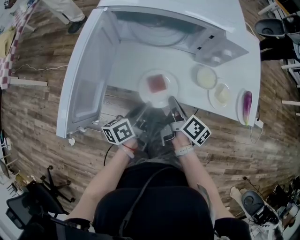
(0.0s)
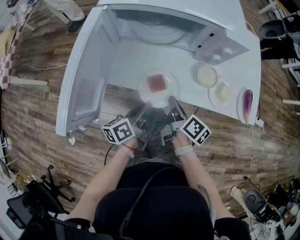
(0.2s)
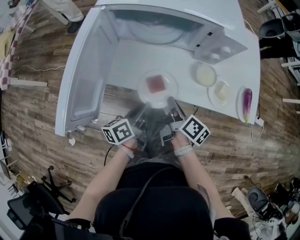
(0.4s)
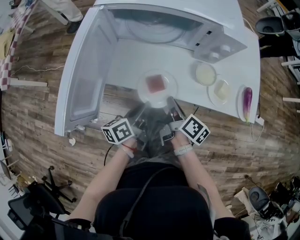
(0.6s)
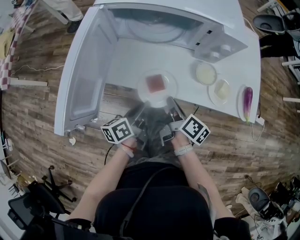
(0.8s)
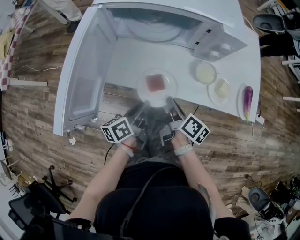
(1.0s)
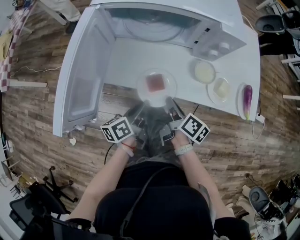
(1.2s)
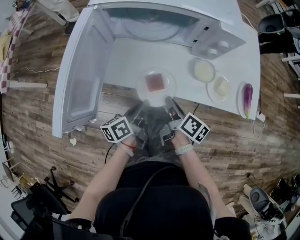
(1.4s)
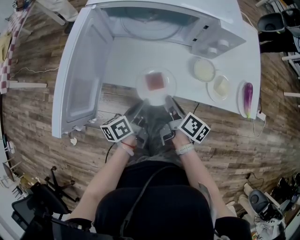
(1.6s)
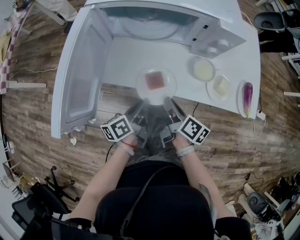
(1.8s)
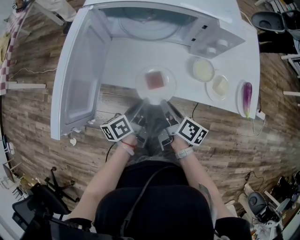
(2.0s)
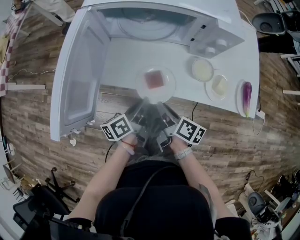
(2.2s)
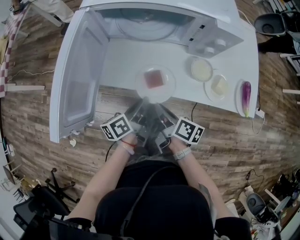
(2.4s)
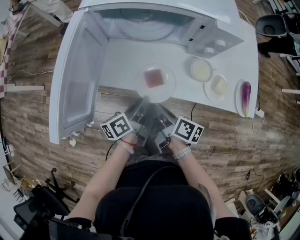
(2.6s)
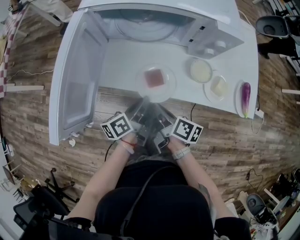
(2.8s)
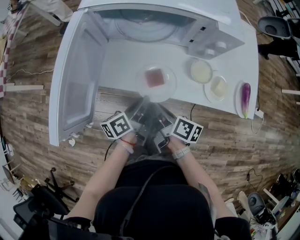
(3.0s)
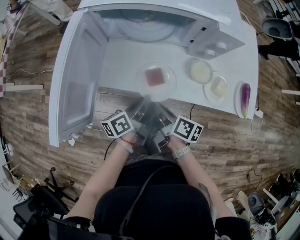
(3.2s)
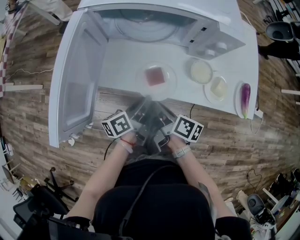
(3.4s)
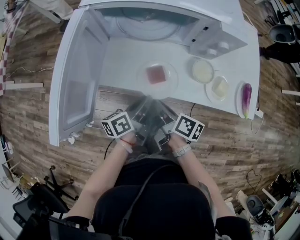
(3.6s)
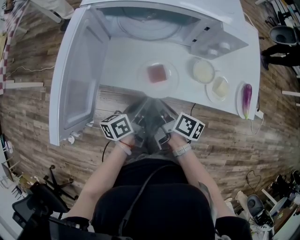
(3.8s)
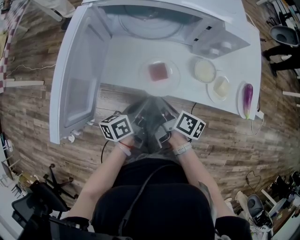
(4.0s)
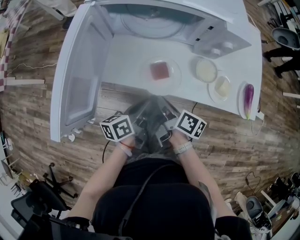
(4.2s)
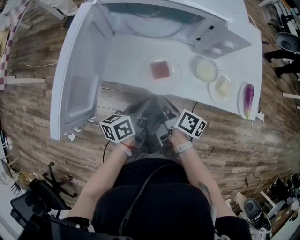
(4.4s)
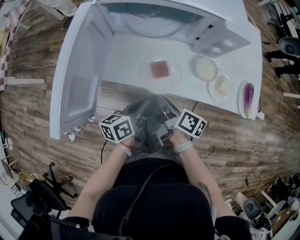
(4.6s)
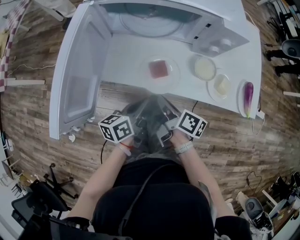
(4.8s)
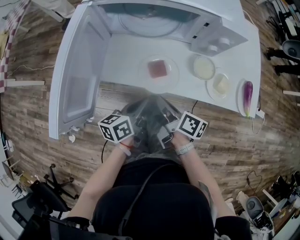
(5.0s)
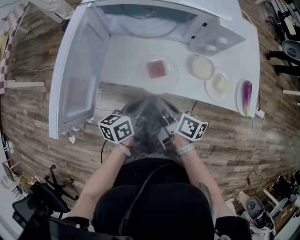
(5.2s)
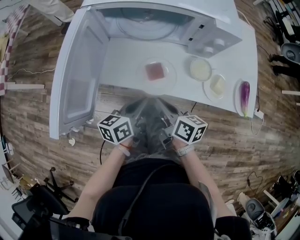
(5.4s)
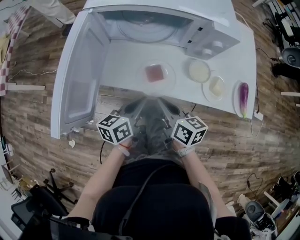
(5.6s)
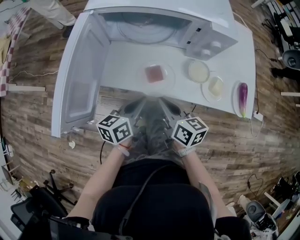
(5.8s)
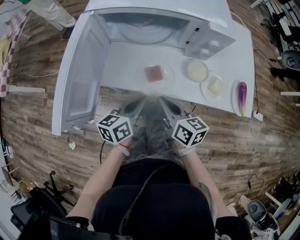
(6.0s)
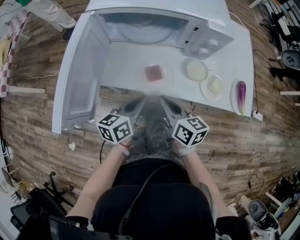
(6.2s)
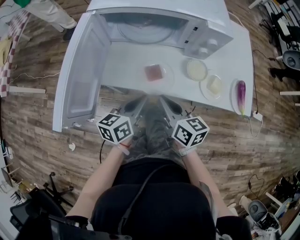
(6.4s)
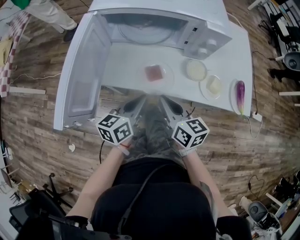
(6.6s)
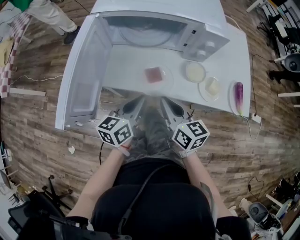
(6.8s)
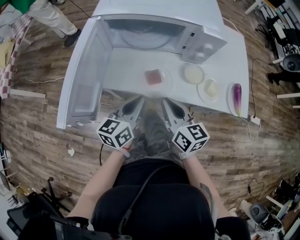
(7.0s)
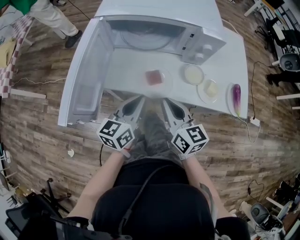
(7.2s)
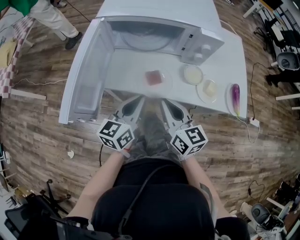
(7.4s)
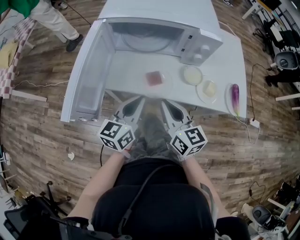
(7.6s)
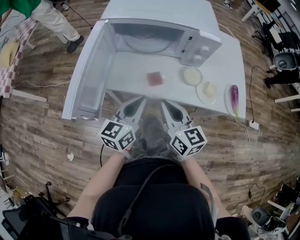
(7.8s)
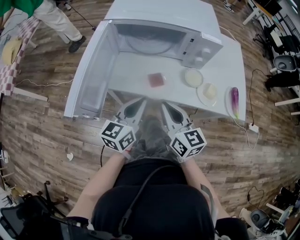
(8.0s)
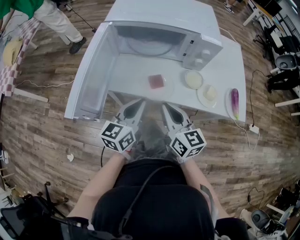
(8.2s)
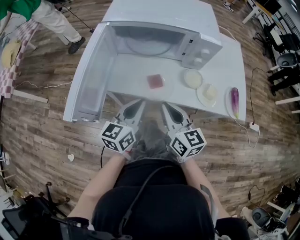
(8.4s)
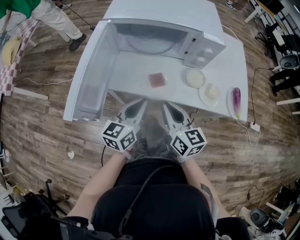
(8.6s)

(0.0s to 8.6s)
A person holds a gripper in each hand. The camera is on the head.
0.0s - 4.4s: The grippers stay close to where they were, moving slightly.
4.4s - 5.8s: The right gripper shifts about 5 cm upward, and changes its angle by about 30 degrees.
5.8s - 7.2s: Both grippers move upward, approximately 5 cm. The right gripper rotates approximately 20 degrees.
7.2s - 8.6s: The grippers stay close to where they were, moving slightly.

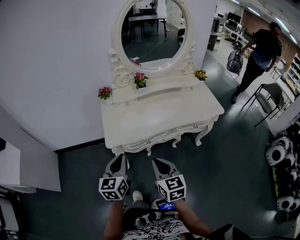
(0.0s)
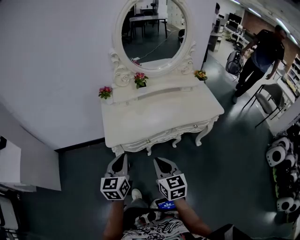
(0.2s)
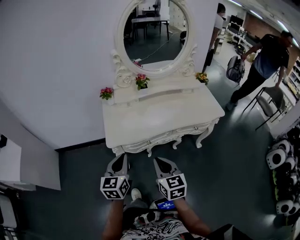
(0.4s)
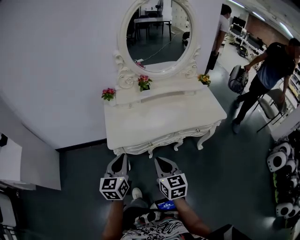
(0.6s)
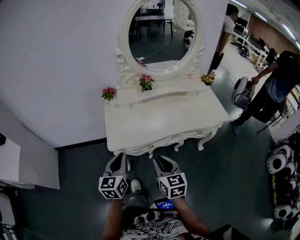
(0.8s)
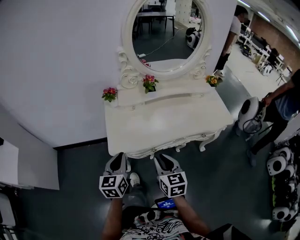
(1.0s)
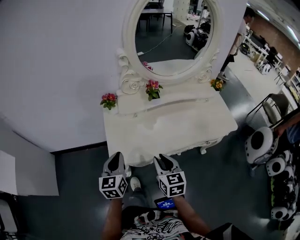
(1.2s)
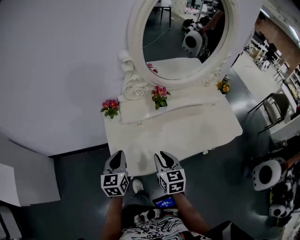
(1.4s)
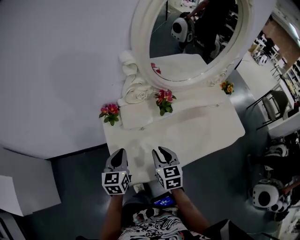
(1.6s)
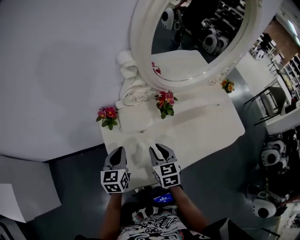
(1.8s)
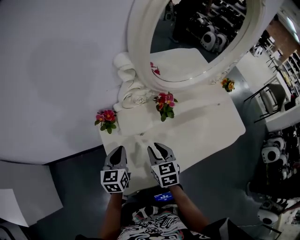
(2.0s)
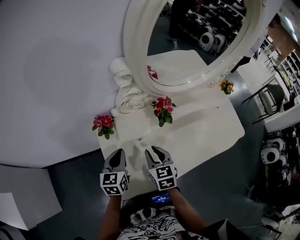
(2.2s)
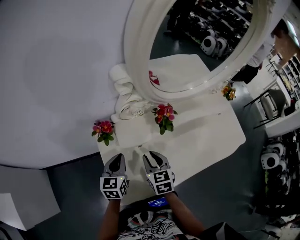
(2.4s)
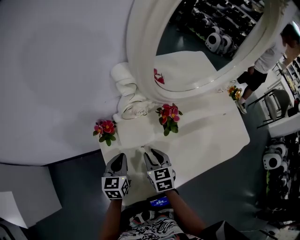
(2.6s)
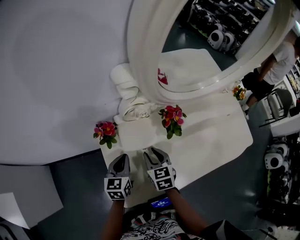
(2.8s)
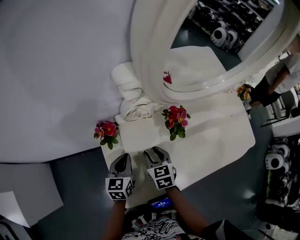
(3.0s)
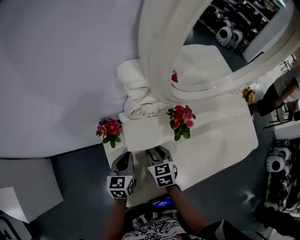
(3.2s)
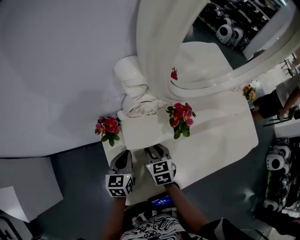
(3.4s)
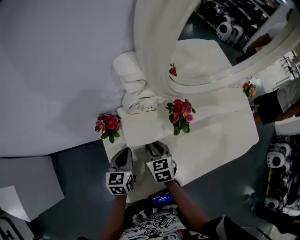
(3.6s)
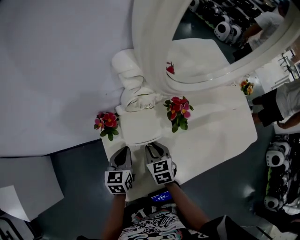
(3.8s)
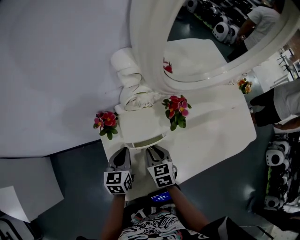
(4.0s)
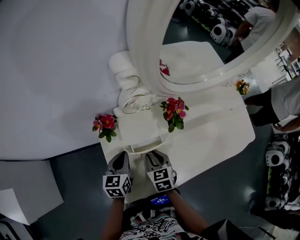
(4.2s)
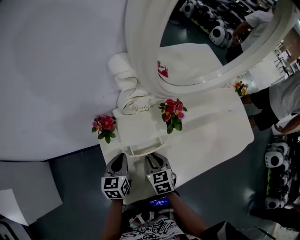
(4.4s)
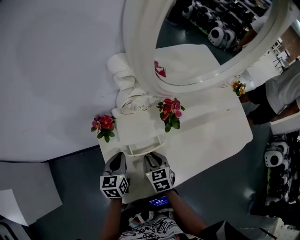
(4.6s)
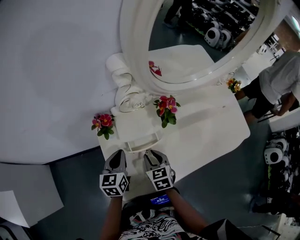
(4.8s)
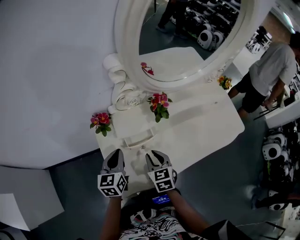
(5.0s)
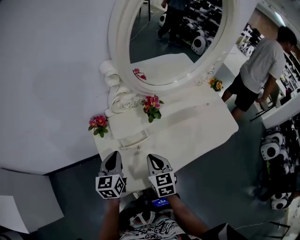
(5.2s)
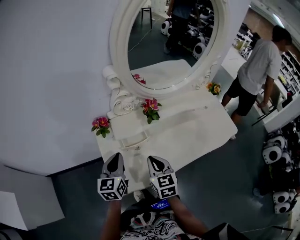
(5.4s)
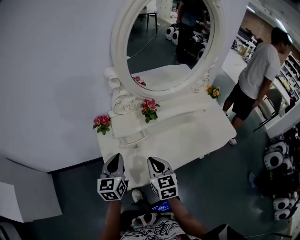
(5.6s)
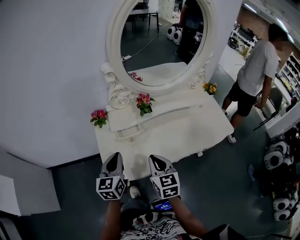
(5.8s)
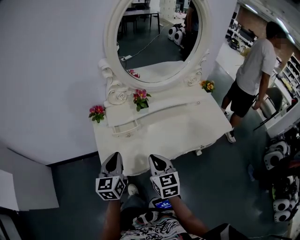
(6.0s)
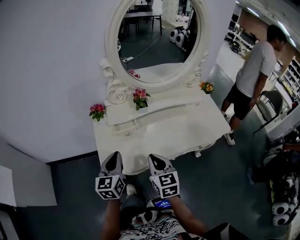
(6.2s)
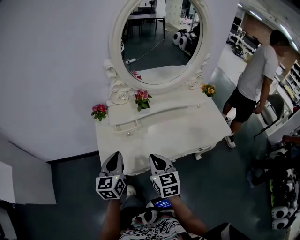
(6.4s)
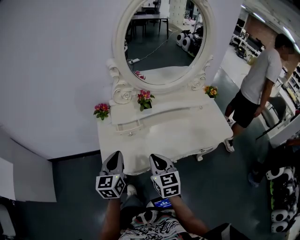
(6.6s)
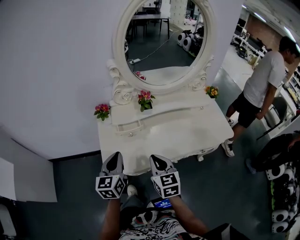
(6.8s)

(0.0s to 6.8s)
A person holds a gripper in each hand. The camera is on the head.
0.0s - 1.4s: Both grippers travel together forward, some 25 cm. The right gripper opens.
1.4s - 2.8s: The grippers both shift forward and downward by about 20 cm.
2.8s - 4.0s: The grippers move only a little.
4.0s - 5.4s: Both grippers travel together upward and backward, about 15 cm. The right gripper closes.
5.4s - 6.8s: The left gripper moves backward, about 10 cm. Meanwhile the right gripper goes some 10 cm backward and to the right.

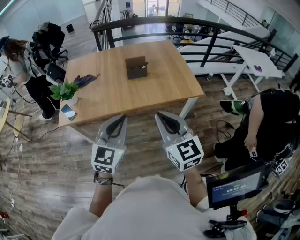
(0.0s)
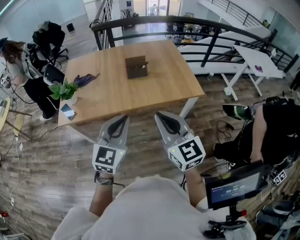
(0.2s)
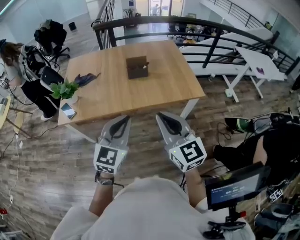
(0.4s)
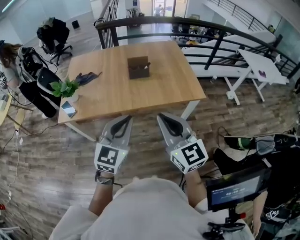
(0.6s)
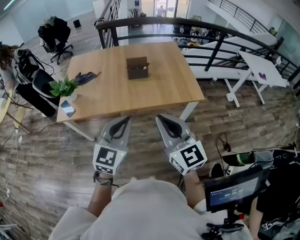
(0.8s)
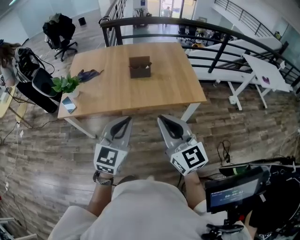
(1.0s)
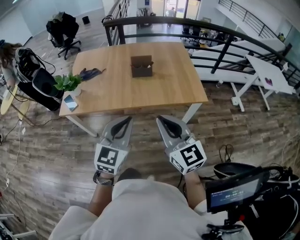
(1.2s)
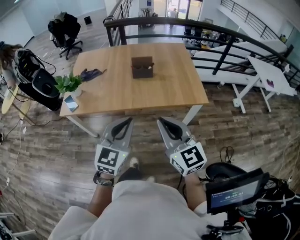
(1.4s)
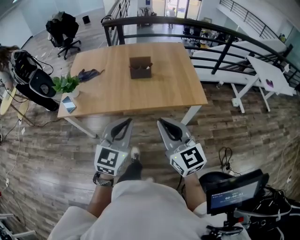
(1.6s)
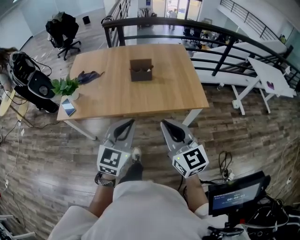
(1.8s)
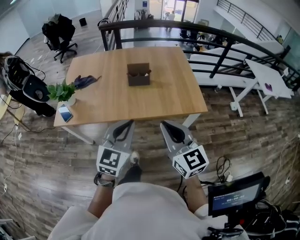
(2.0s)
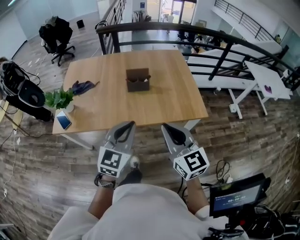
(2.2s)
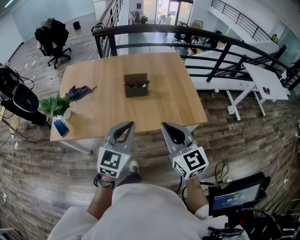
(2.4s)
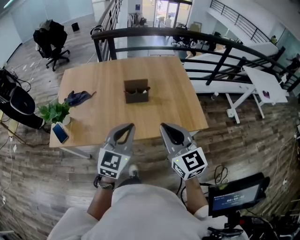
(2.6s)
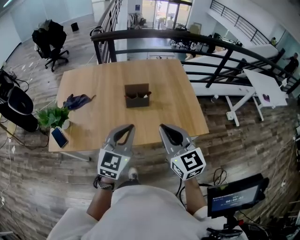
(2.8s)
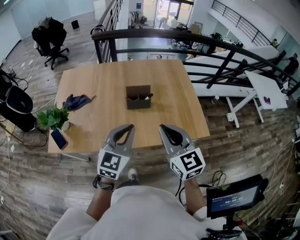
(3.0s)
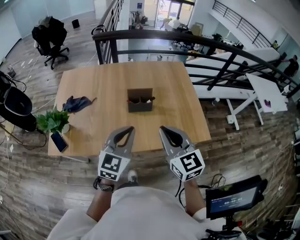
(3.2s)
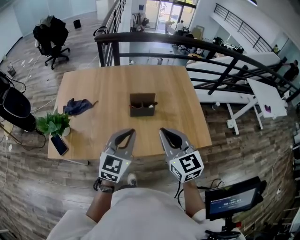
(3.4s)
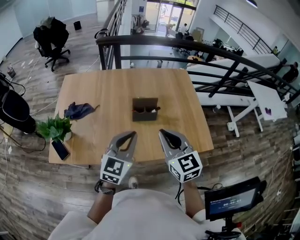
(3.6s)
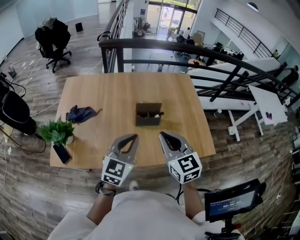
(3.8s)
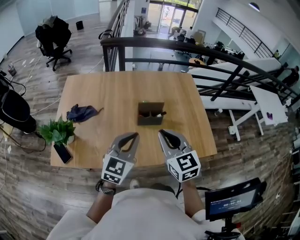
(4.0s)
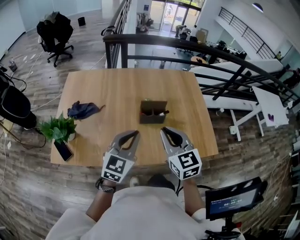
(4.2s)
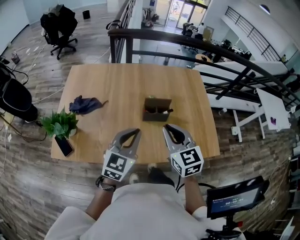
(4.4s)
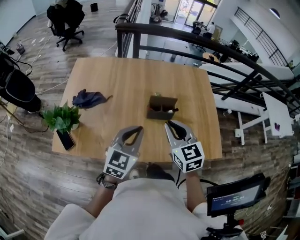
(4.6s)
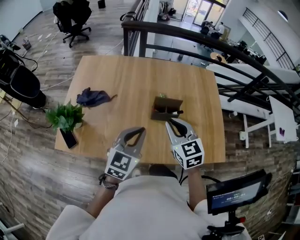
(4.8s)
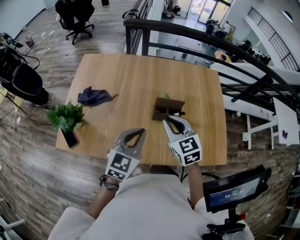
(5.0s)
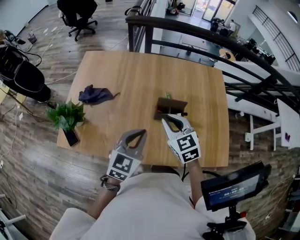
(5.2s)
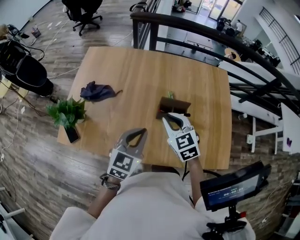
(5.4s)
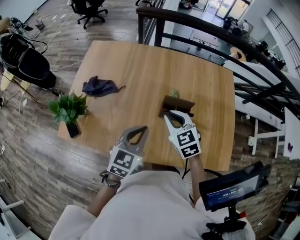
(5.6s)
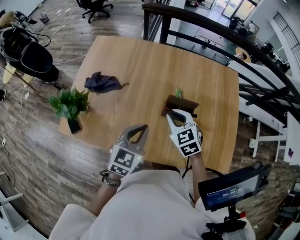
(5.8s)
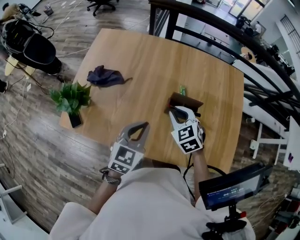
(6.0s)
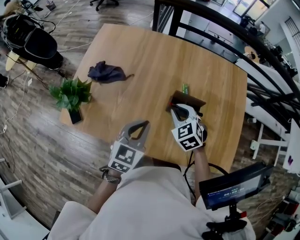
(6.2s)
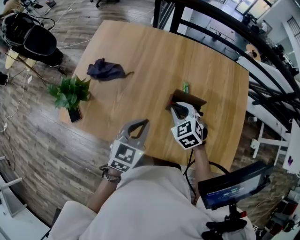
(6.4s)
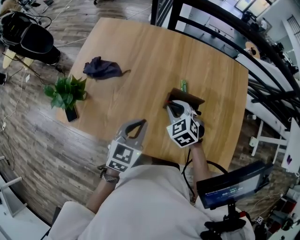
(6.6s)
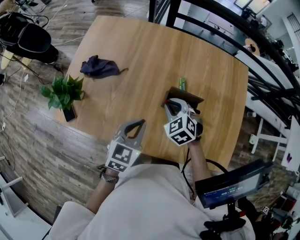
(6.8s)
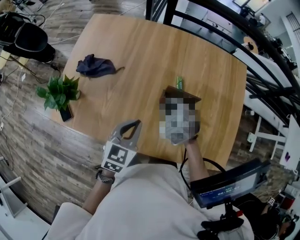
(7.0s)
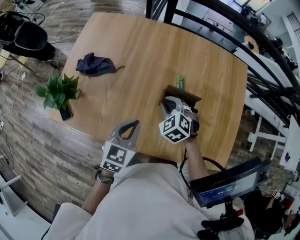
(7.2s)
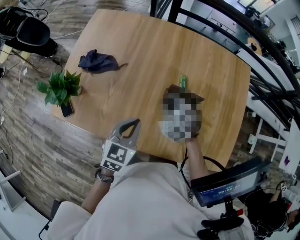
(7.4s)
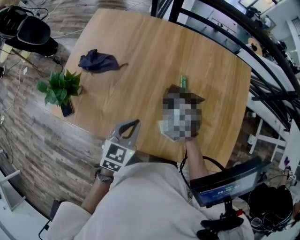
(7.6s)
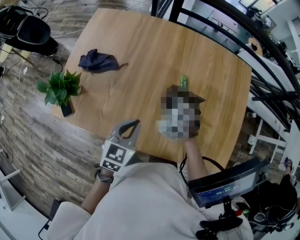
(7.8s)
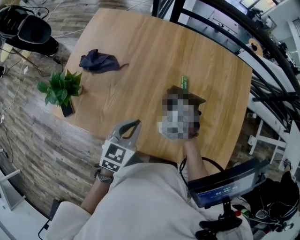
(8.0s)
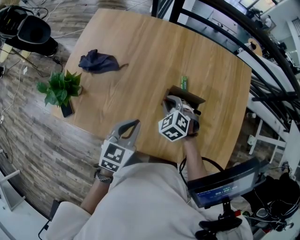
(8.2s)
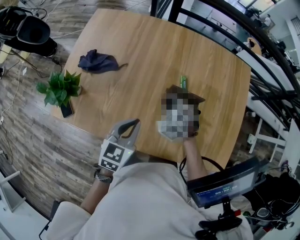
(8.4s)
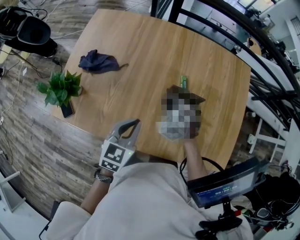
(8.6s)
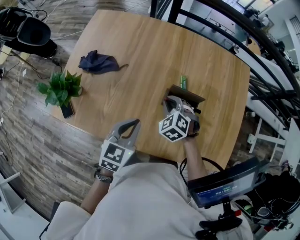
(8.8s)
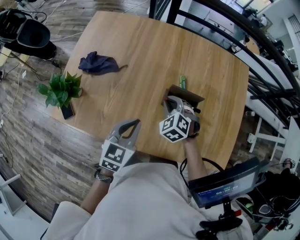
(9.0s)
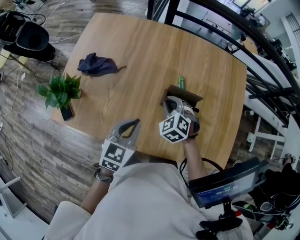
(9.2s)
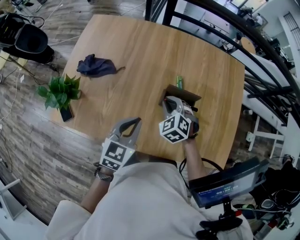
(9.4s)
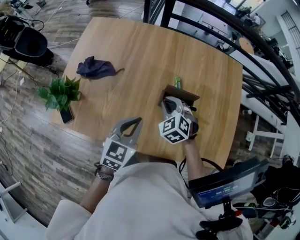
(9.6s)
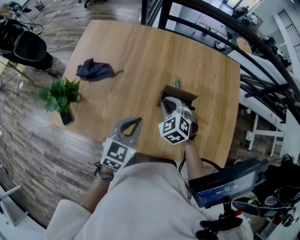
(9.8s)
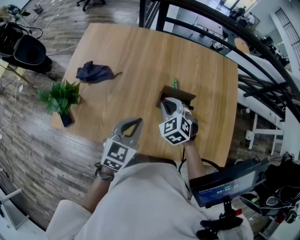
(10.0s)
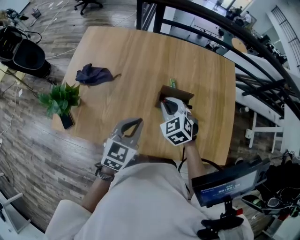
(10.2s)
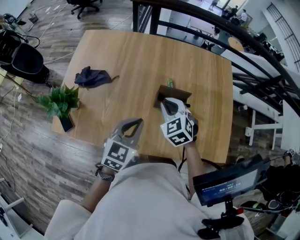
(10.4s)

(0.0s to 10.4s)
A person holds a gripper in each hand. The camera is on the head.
0.0s - 1.4s: The left gripper travels to the right by roughly 5 cm.
1.4s - 3.0s: Both grippers travel together forward, roughly 20 cm.
3.0s - 4.4s: Both grippers travel together forward and to the left, about 10 cm.
4.4s - 6.0s: The right gripper is displaced downward and forward by approximately 15 cm, and changes its angle by approximately 30 degrees; the left gripper goes roughly 5 cm downward, and changes its angle by some 20 degrees.
6.0s - 7.4s: The right gripper is displaced downward by approximately 5 cm.
7.4s - 9.0s: There are only small adjustments of the grippers.
9.0s - 10.4s: The right gripper moves upward, roughly 10 cm.
